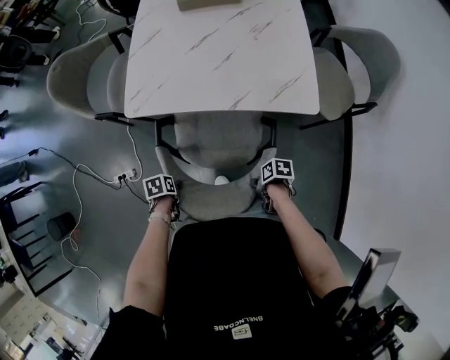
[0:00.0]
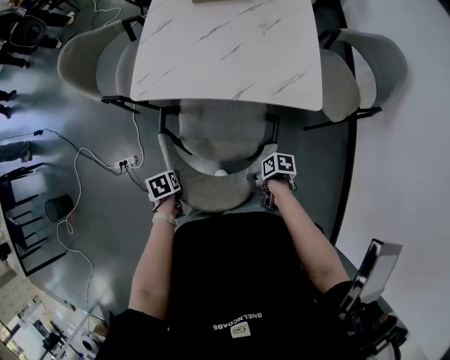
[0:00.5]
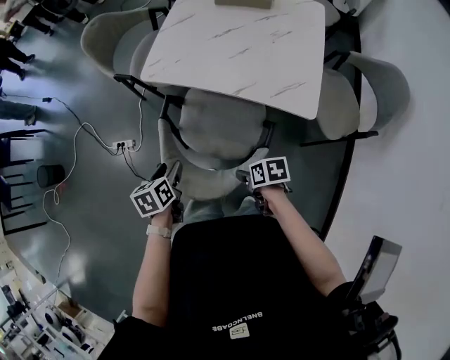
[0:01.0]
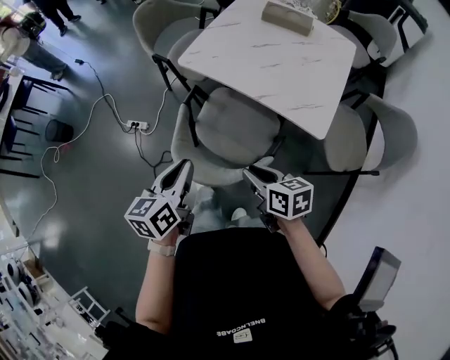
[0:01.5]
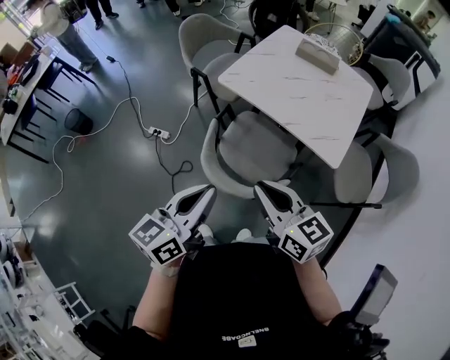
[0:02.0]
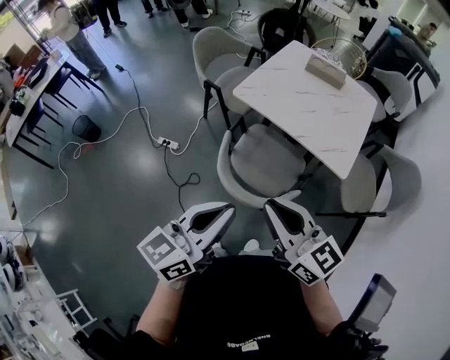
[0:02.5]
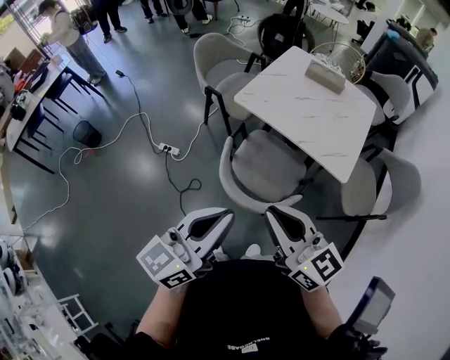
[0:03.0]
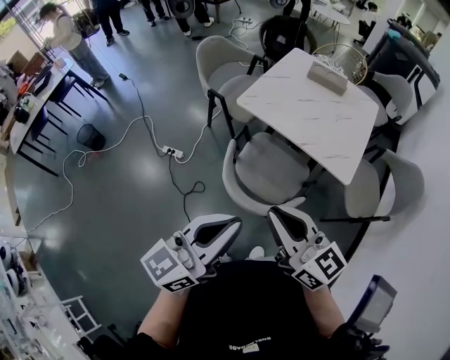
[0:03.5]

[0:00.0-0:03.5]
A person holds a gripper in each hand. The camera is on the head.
0:00.0 to 0:02.0: The left gripper shifts about 50 cm upward, angles its fingers upward, by roughly 70 degrees, and closes up.
0:02.0 to 0:03.5: The left gripper goes approximately 10 cm upward.

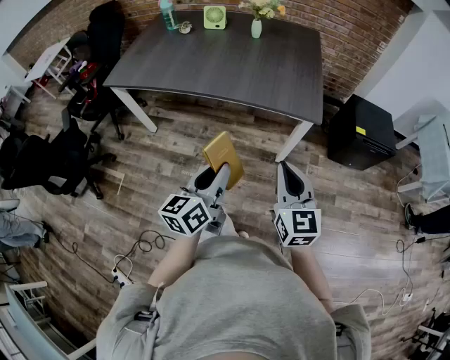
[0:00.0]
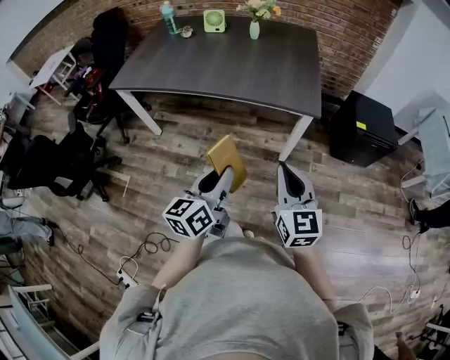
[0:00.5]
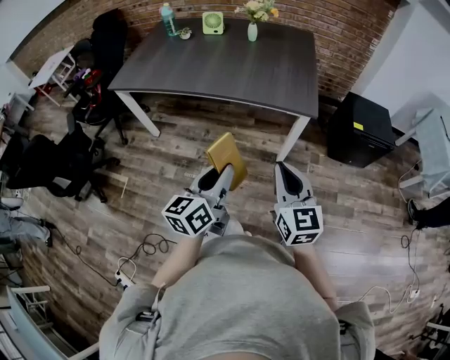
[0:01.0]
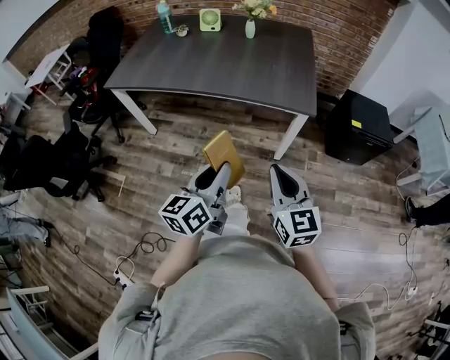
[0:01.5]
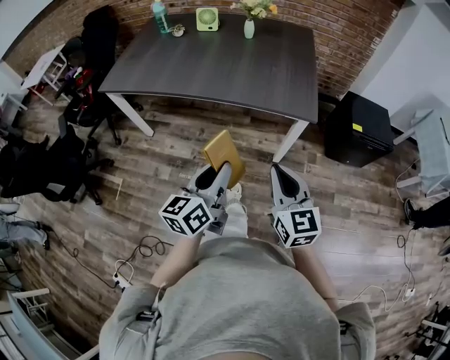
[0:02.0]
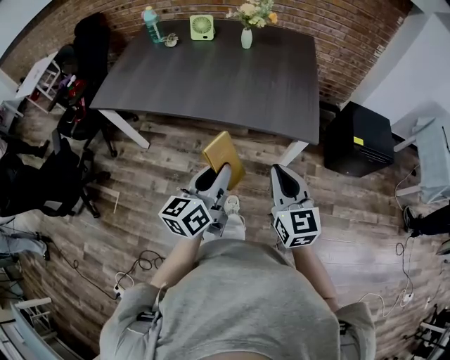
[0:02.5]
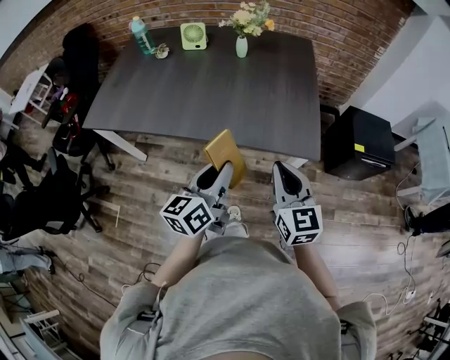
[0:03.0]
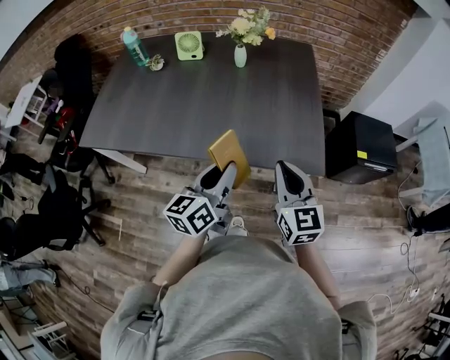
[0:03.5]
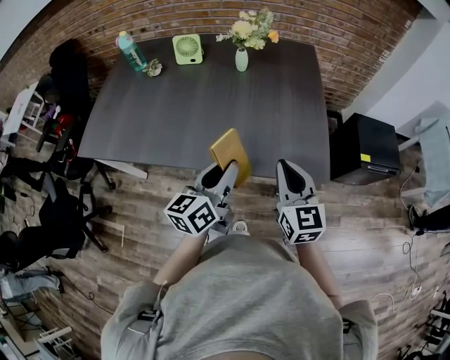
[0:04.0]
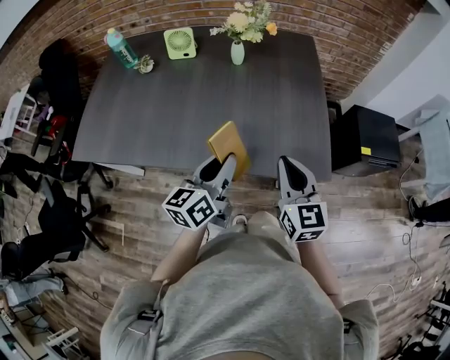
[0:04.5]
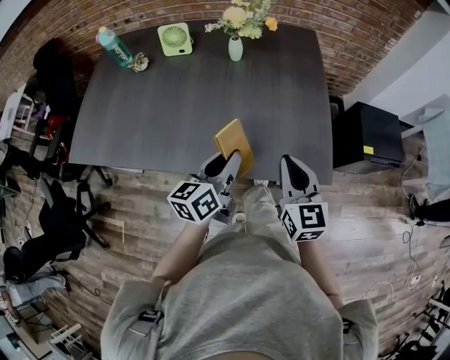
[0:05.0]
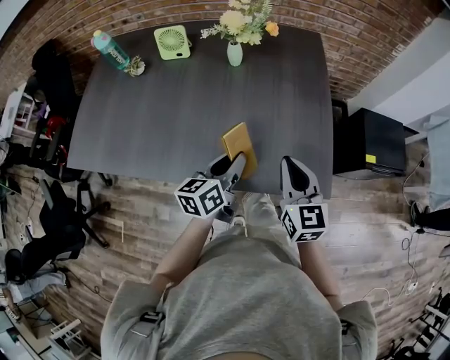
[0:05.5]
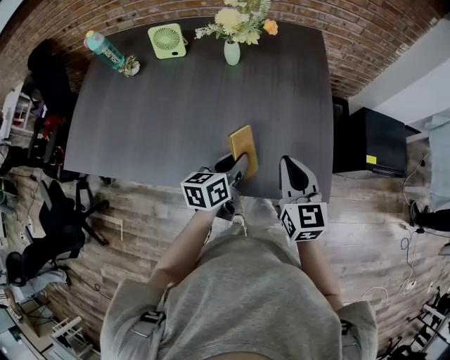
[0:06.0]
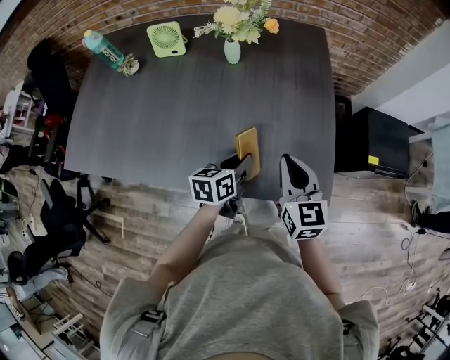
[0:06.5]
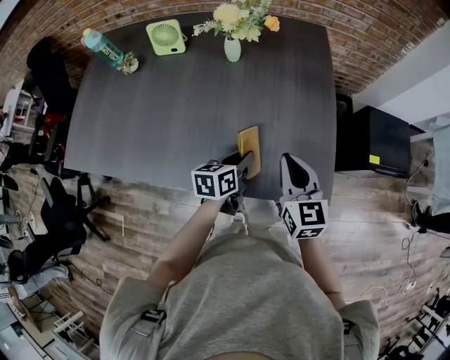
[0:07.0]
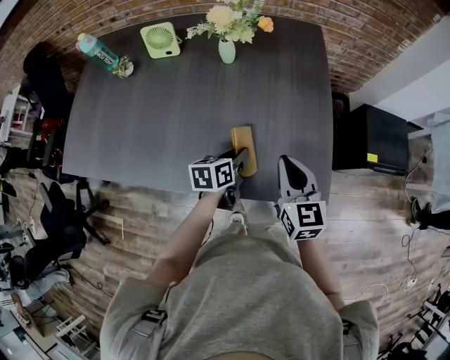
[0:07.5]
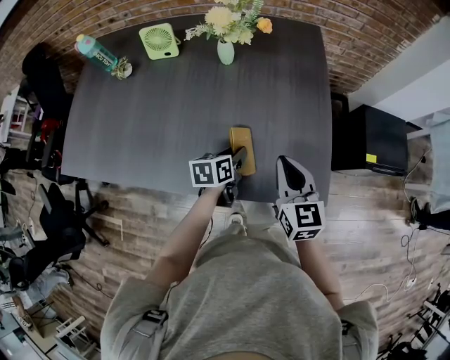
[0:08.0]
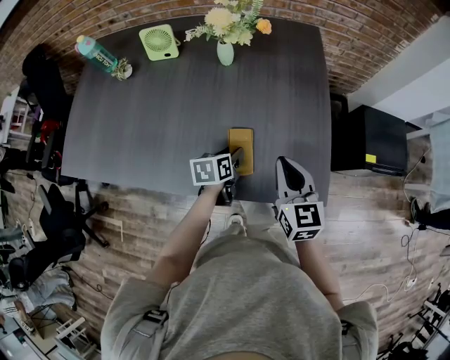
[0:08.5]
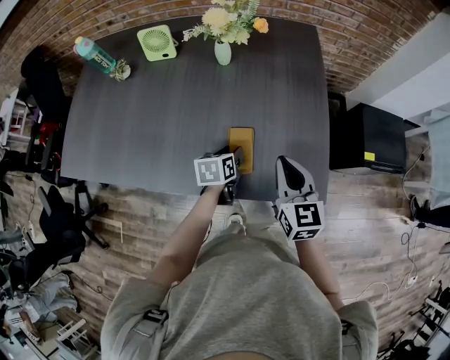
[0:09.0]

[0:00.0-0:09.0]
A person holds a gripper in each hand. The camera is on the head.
0:00.0 to 0:02.0: The grippers make only small movements.
0:02.0 to 0:04.5: The grippers both shift forward by about 35 cm.
0:04.5 to 0:07.0: The right gripper goes about 15 cm forward and downward, while the left gripper travels downward, forward and to the right by about 20 cm, and swivels about 30 degrees.
0:07.0 to 0:09.0: The left gripper ends up some 5 cm from where it was, and opens up.

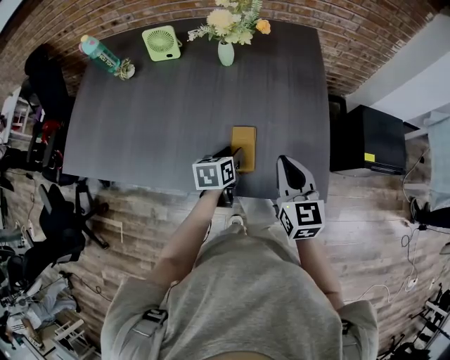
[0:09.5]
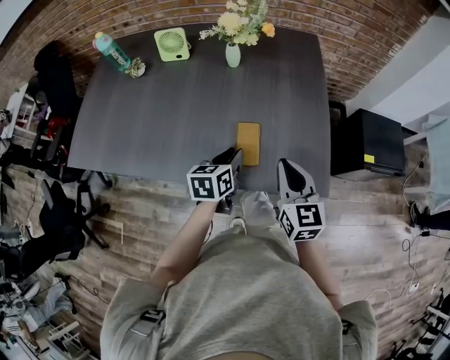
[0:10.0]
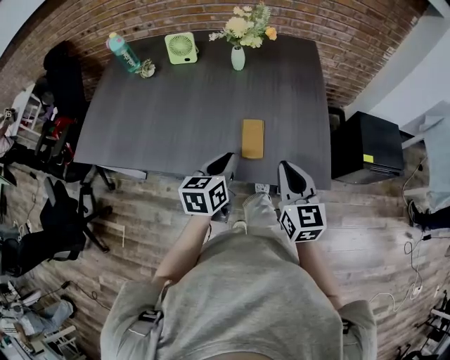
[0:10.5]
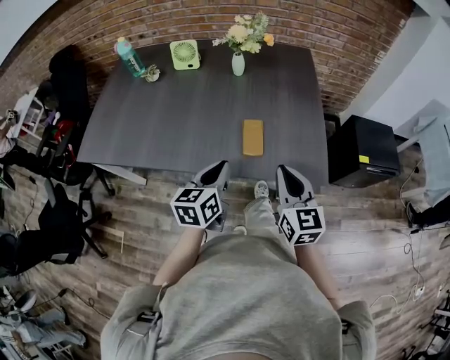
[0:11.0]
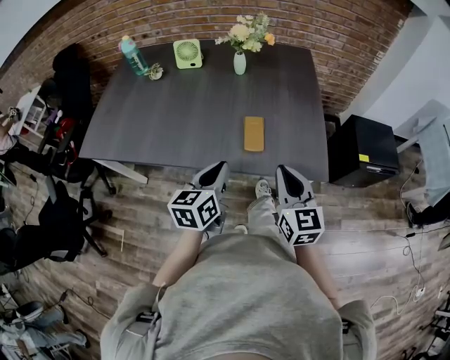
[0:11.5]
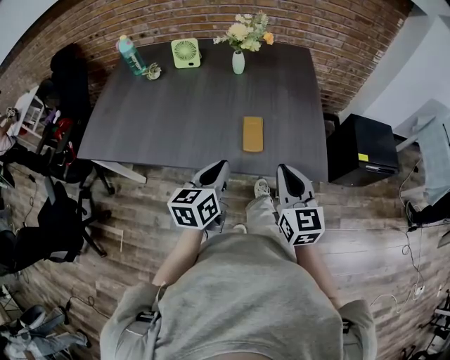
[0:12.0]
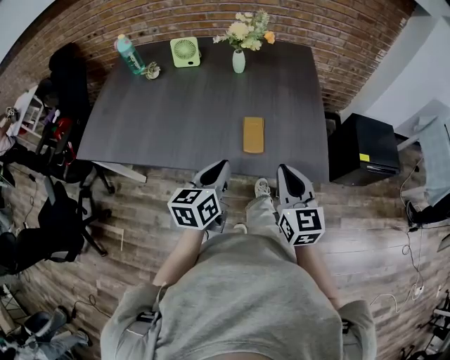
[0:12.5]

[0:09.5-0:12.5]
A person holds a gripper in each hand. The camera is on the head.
0:09.5 to 0:11.0: The left gripper travels backward and upward by approximately 25 cm, swivels some 20 degrees, and closes its fingers. Meanwhile the right gripper moves backward, about 15 cm.
0:11.0 to 0:12.5: The grippers stay close to where they were, moving slightly.

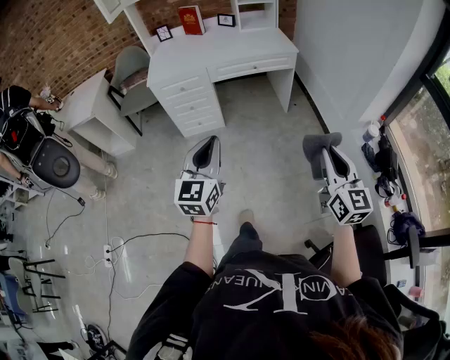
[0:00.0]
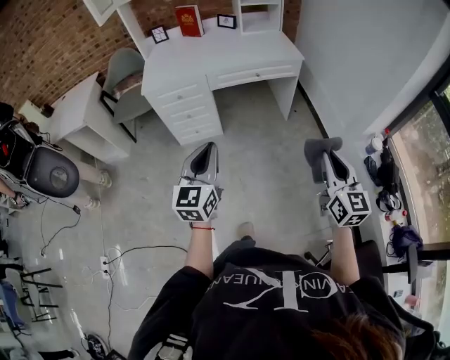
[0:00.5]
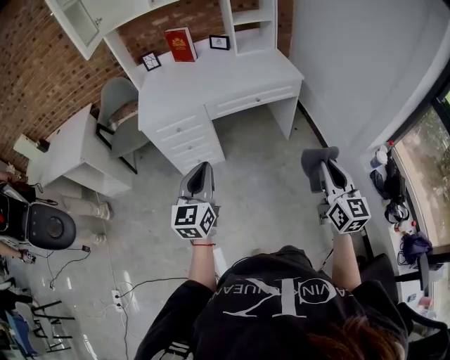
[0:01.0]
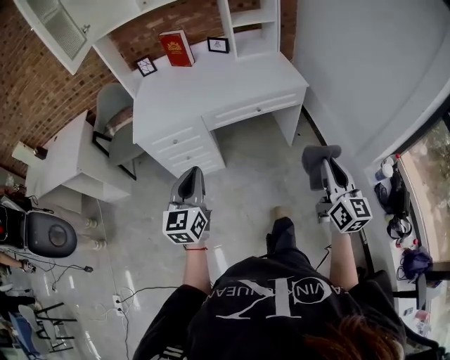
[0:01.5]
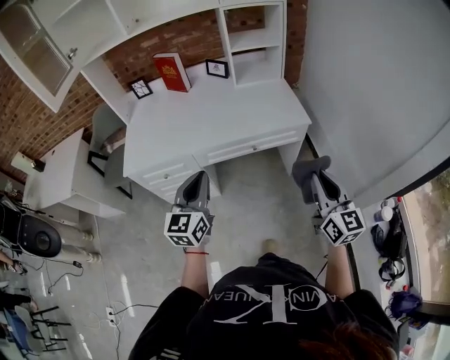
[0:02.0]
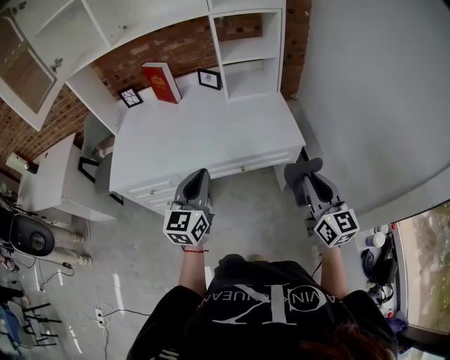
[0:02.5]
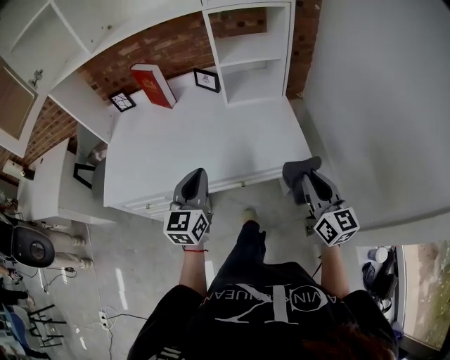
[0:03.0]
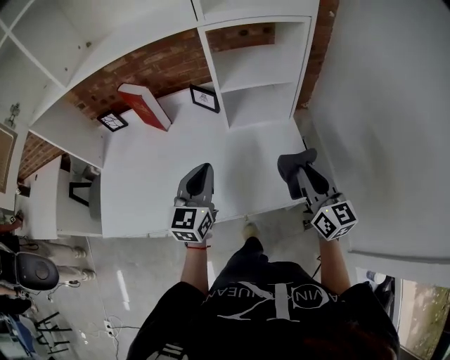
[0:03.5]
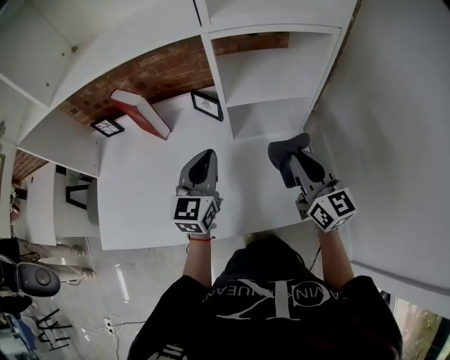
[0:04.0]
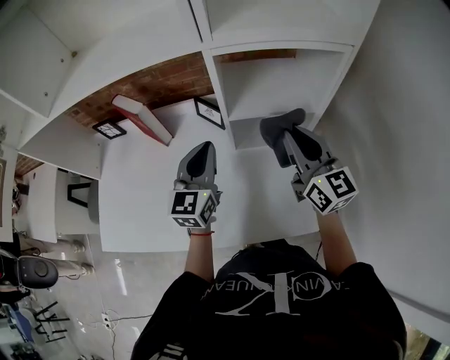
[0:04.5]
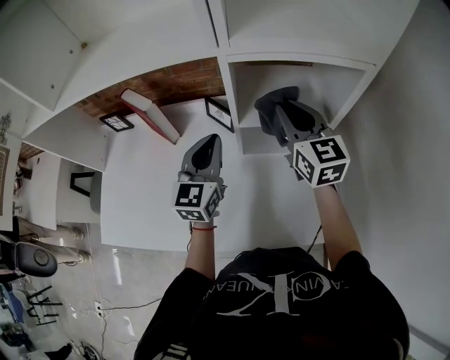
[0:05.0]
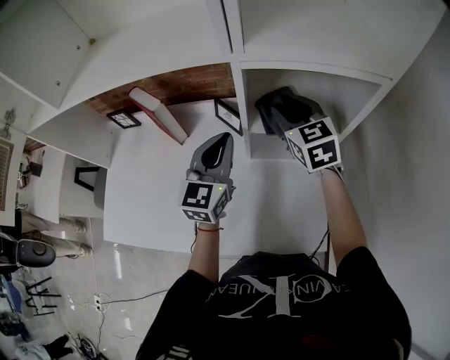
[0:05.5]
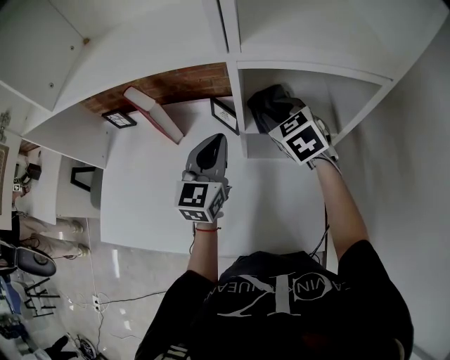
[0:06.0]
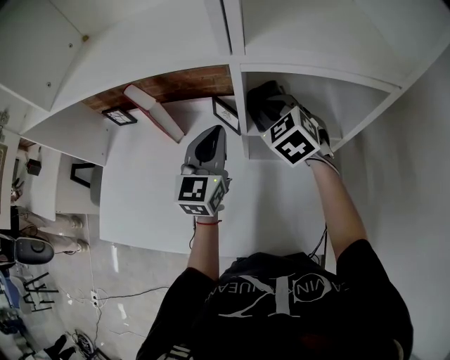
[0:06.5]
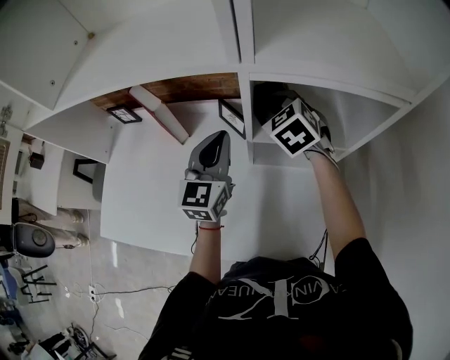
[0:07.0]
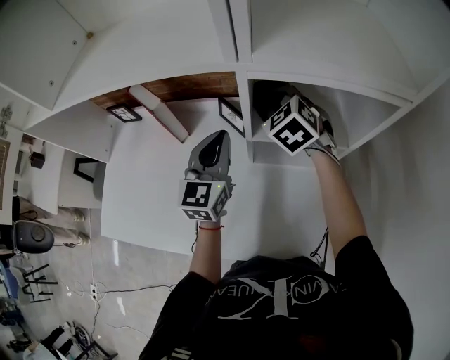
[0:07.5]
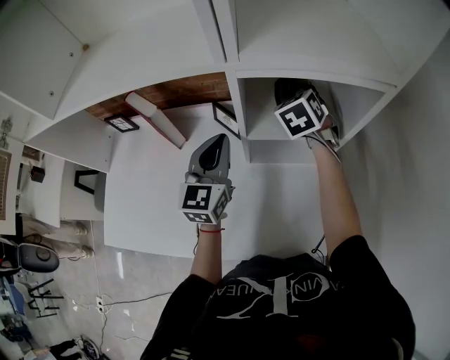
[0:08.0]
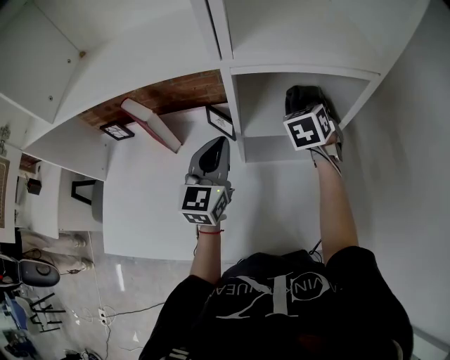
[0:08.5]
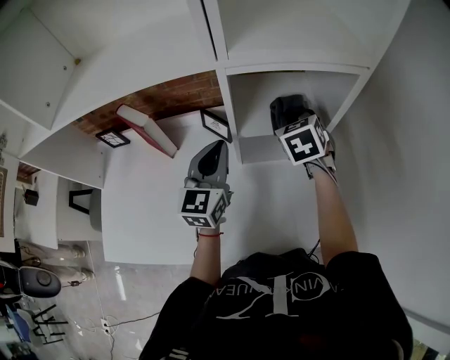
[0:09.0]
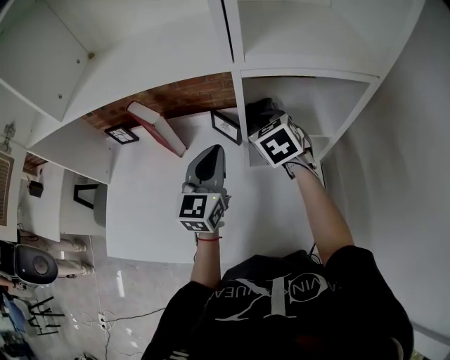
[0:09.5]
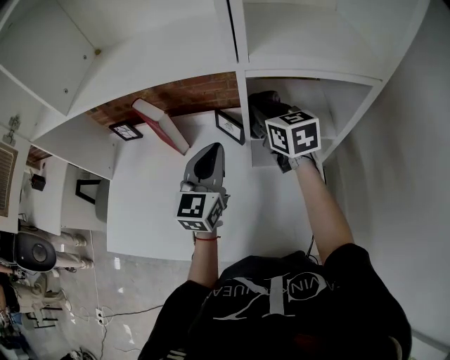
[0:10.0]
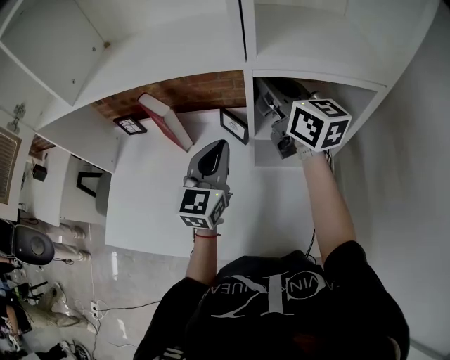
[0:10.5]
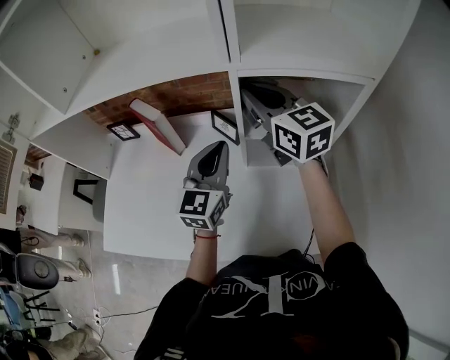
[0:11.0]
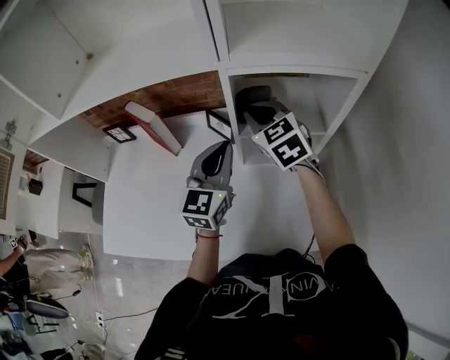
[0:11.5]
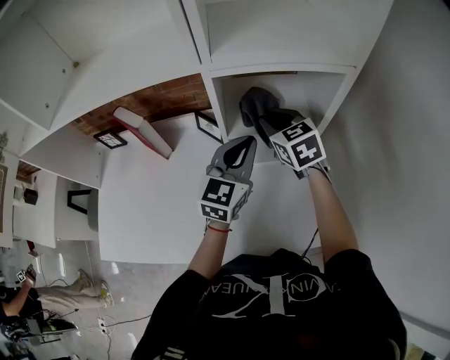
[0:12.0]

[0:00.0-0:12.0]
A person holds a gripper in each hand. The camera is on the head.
0:00.0 to 0:02.0: The pair of grippers is taken forward, some 50 cm.
0:02.0 to 0:04.0: Both grippers are carried forward, about 50 cm.
0:04.0 to 0:06.0: The left gripper moves forward, some 10 cm; the right gripper heads forward, covering about 25 cm, and tips its fingers downward by about 40 degrees.
0:06.0 to 0:08.0: The right gripper shifts roughly 10 cm forward and to the right, and swivels some 20 degrees.
0:08.0 to 0:10.0: The right gripper is displaced to the left and backward by some 10 cm, and turns by about 40 degrees.
0:10.0 to 0:12.0: The right gripper heads to the right, covering some 10 cm, and goes upward and returns, approximately 10 cm each way; the left gripper is displaced to the right by some 15 cm.
